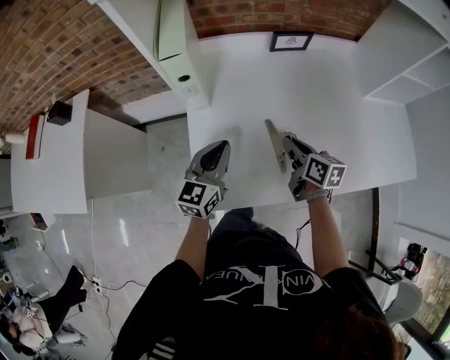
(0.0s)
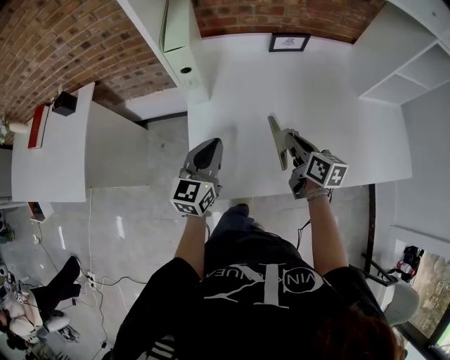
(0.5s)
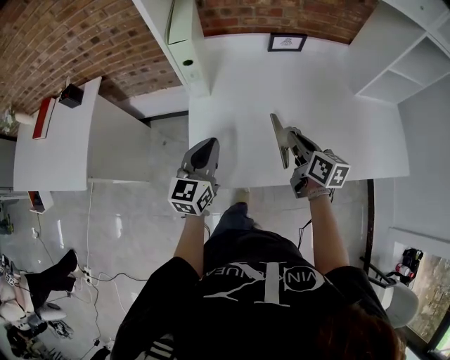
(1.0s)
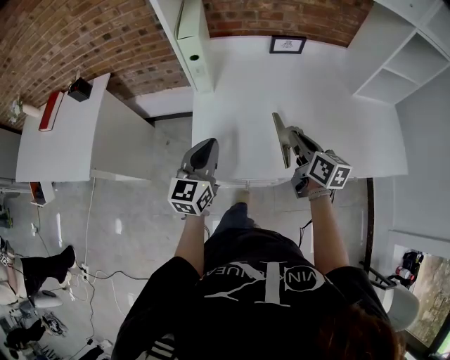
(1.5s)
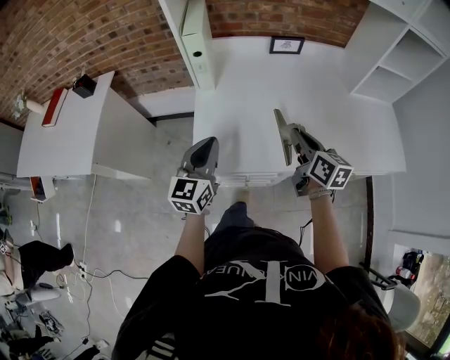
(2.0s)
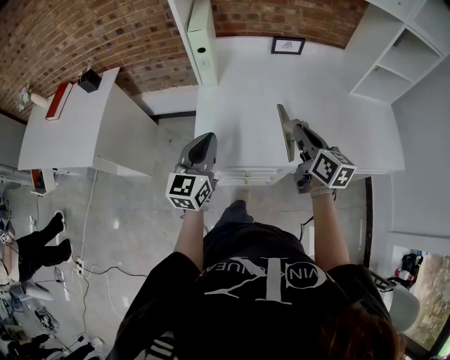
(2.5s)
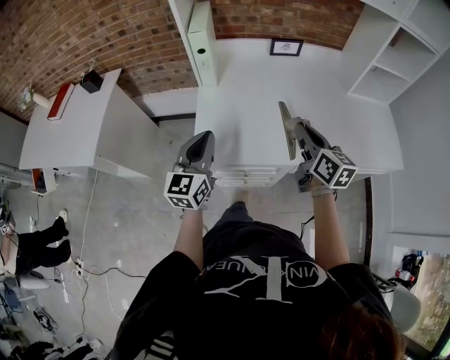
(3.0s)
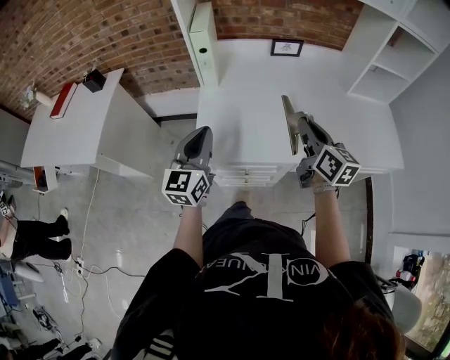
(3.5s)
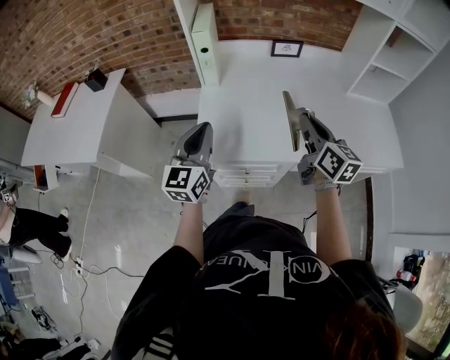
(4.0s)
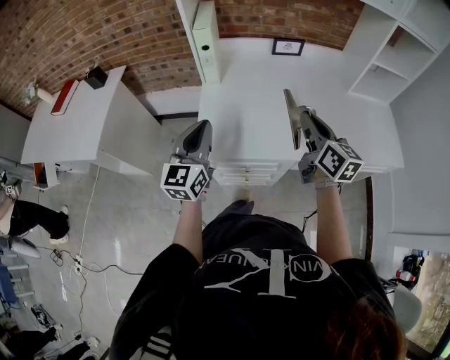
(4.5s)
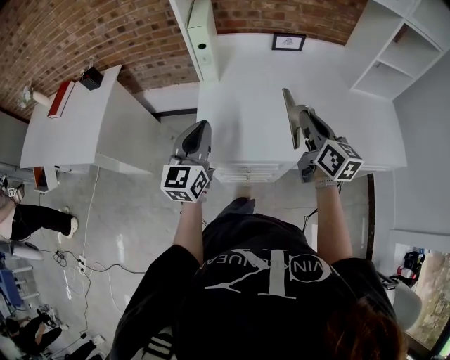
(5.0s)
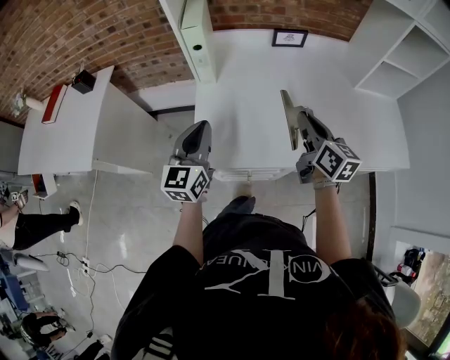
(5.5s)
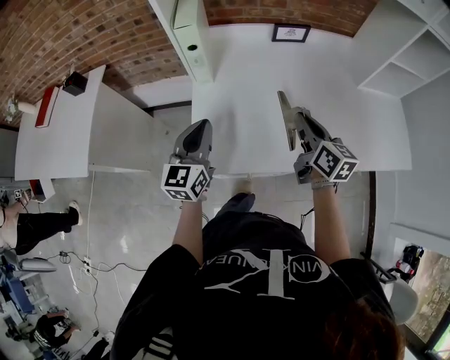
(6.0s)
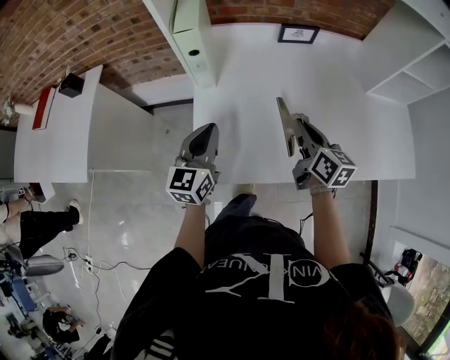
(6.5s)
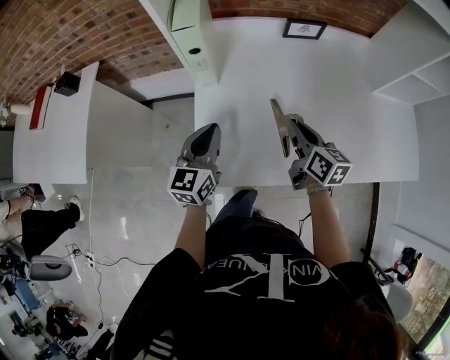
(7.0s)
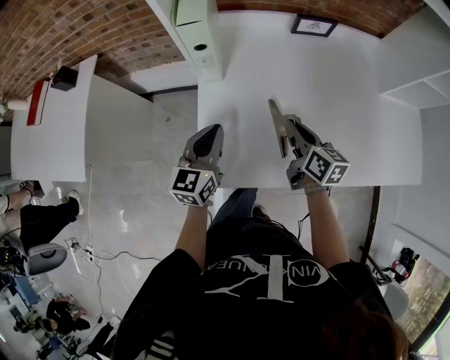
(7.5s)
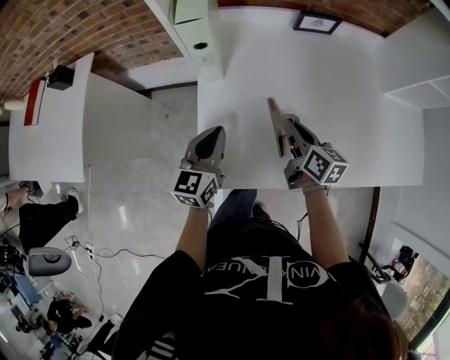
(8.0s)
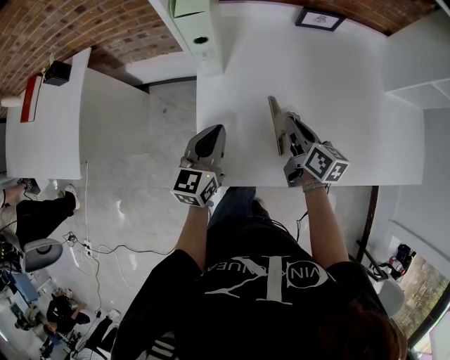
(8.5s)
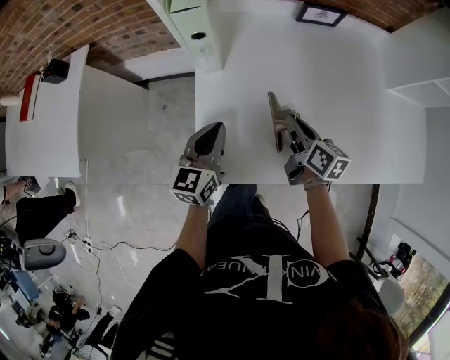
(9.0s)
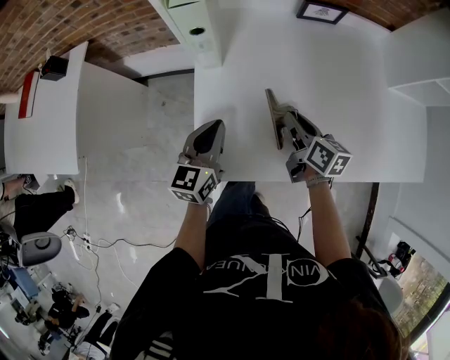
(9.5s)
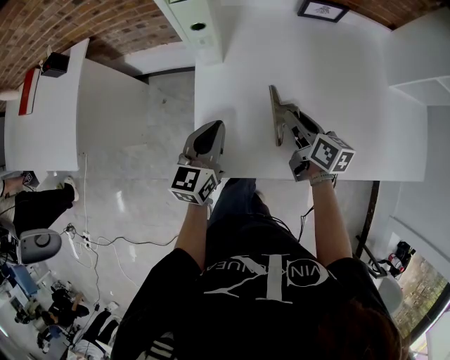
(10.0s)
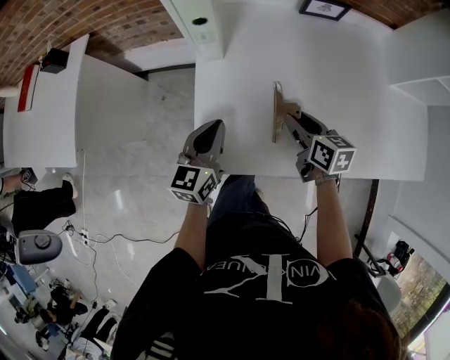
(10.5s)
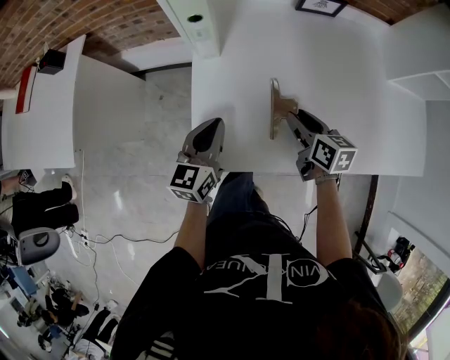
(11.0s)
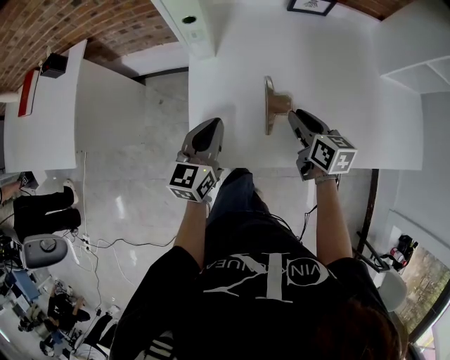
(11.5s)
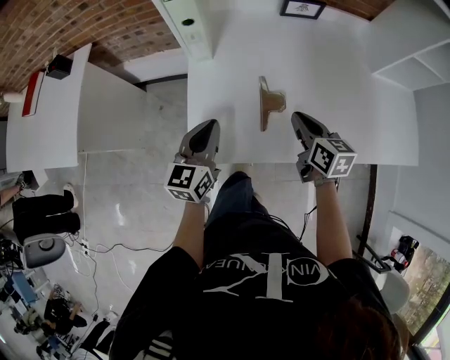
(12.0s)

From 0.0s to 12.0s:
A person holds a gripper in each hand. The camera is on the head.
From 0.0s to 2.0s: Both grippers move backward and upward, roughly 15 cm.
From 2.0s to 4.0s: Both grippers travel together upward, roughly 5 cm.
From 4.0s to 6.0s: Both grippers move forward and downward, some 10 cm.
From 6.0s to 8.0s: The left gripper travels downward by some 10 cm. Meanwhile the right gripper travels downward, to the left and forward by some 15 cm.
From 8.0s to 10.0s: The grippers move only a little.
From 10.0s to 12.0s: The right gripper moves backward, roughly 5 cm; the left gripper shifts by approximately 5 cm.

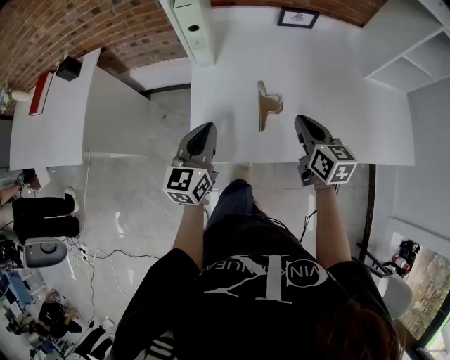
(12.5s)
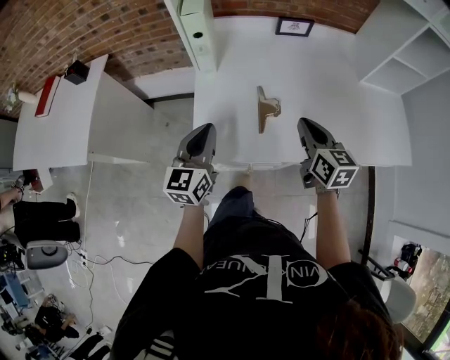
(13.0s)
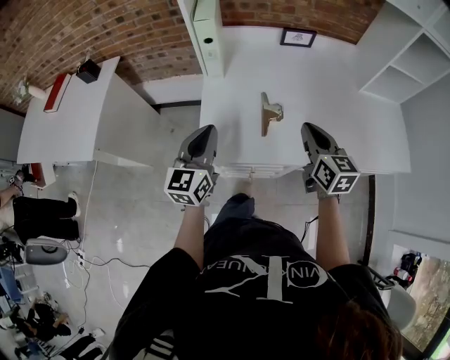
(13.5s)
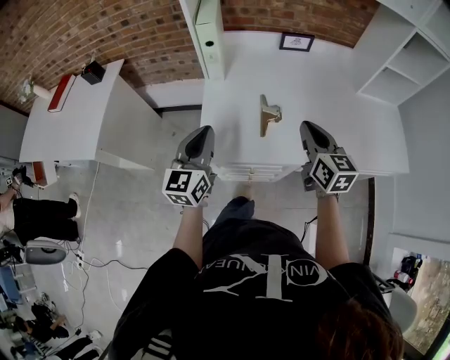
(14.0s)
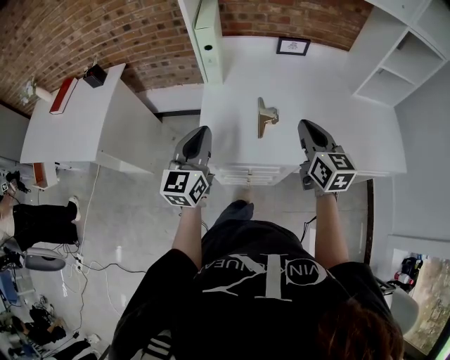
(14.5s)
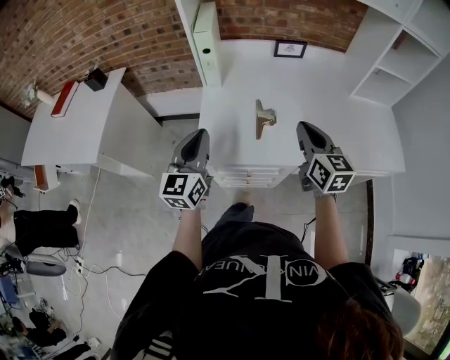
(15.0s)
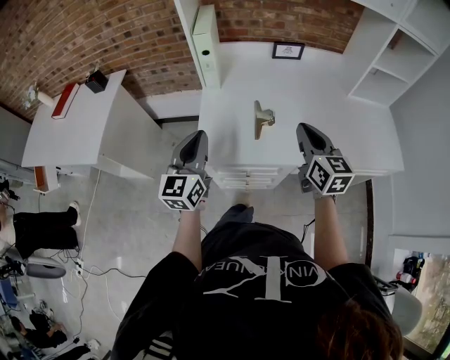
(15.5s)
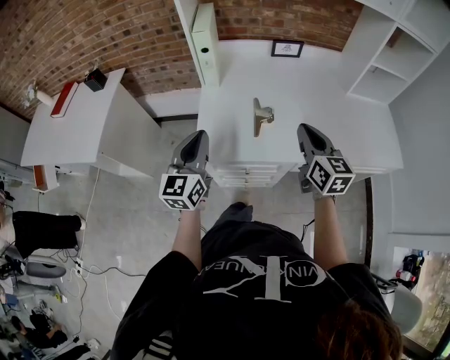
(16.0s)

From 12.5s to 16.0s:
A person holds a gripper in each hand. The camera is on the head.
From 12.5s to 14.5s: Both grippers move upward and backward, some 10 cm.
From 14.5s to 16.0s: The grippers make only small movements.

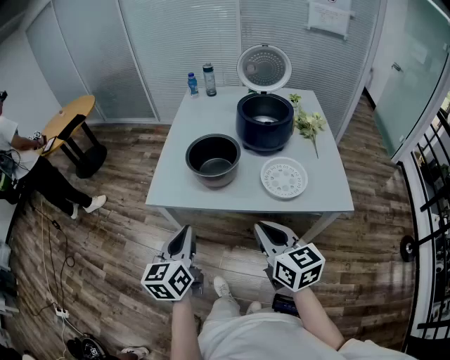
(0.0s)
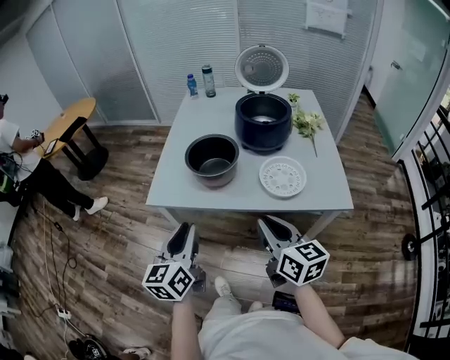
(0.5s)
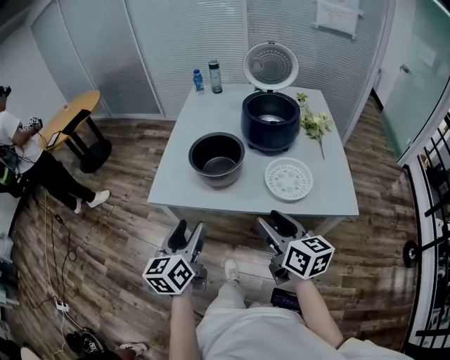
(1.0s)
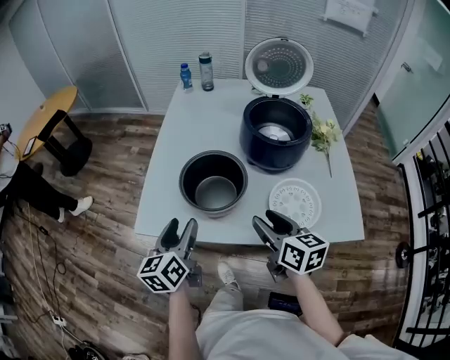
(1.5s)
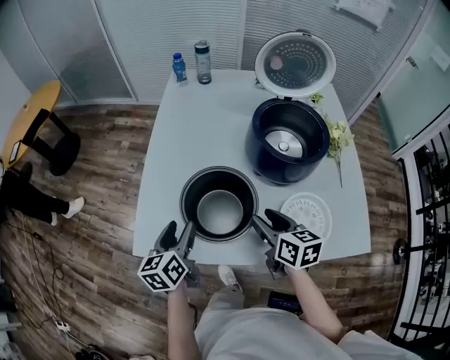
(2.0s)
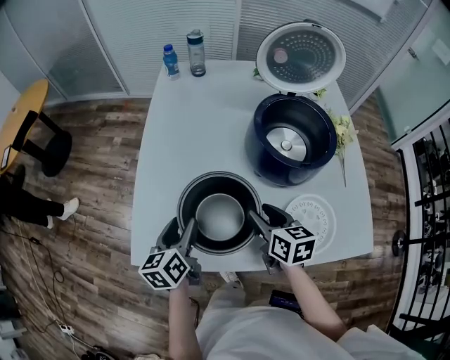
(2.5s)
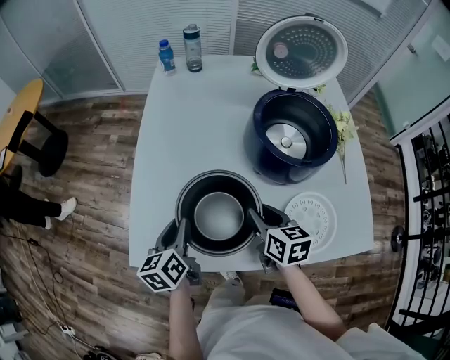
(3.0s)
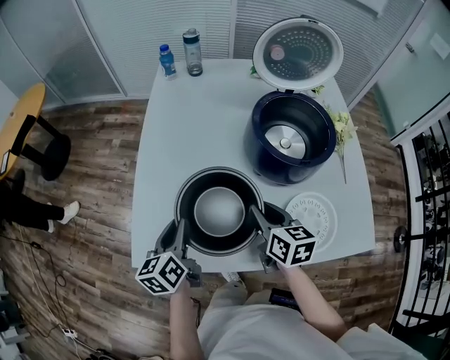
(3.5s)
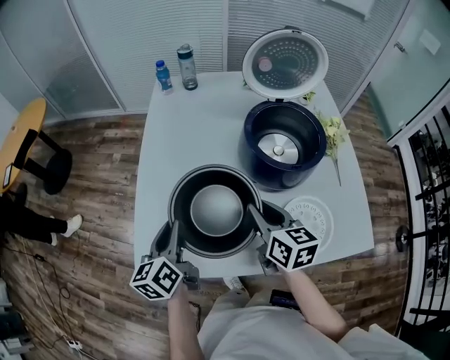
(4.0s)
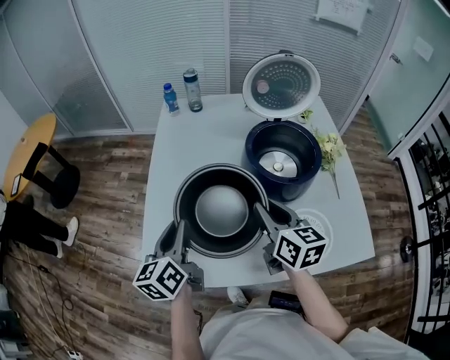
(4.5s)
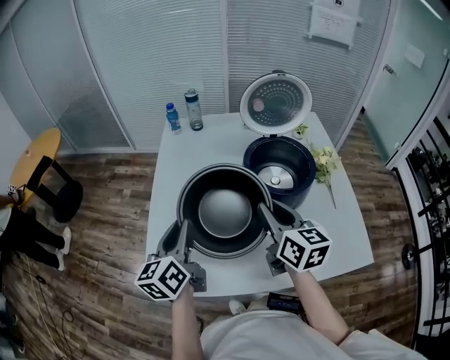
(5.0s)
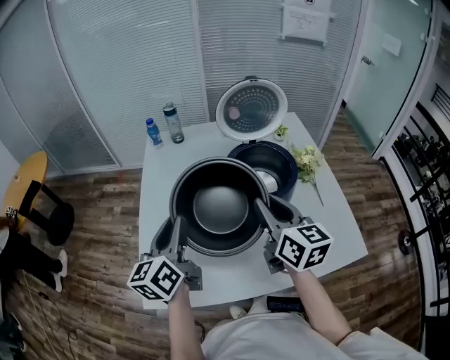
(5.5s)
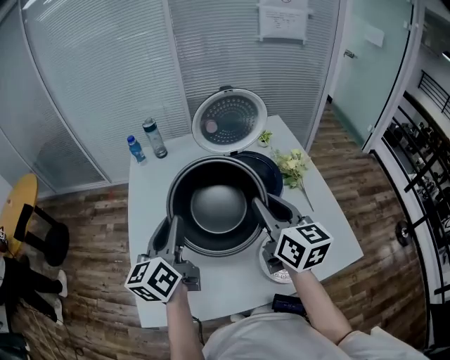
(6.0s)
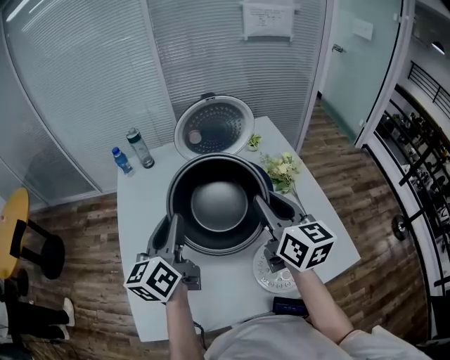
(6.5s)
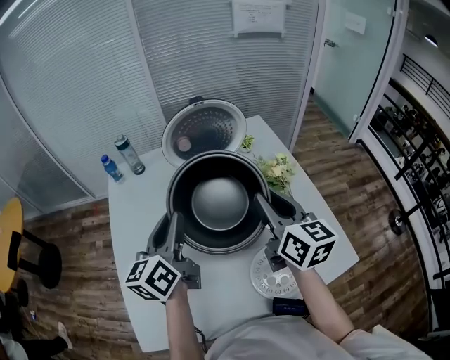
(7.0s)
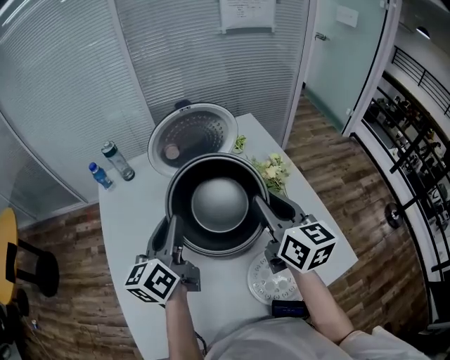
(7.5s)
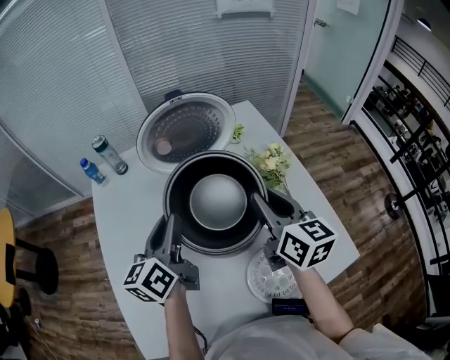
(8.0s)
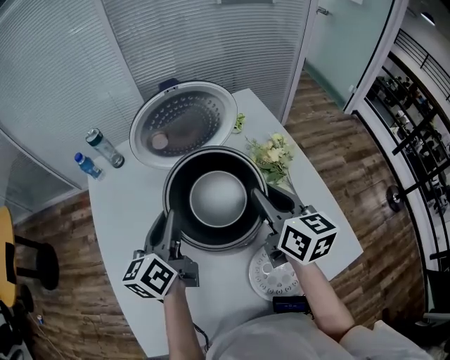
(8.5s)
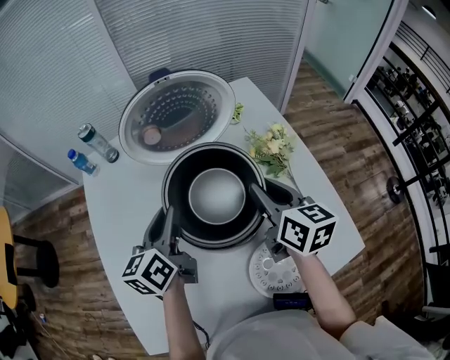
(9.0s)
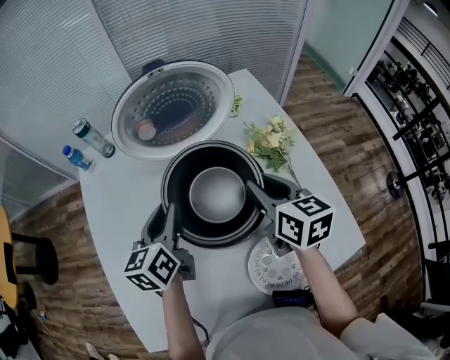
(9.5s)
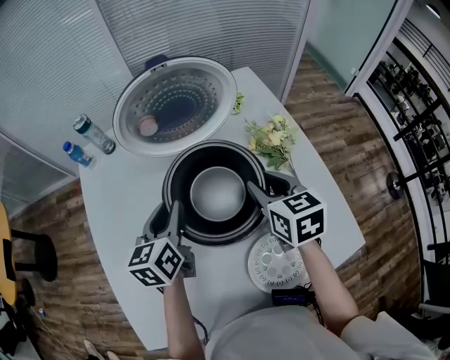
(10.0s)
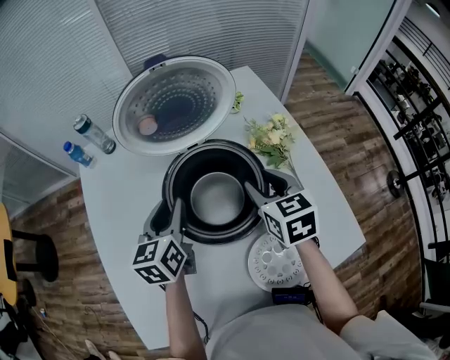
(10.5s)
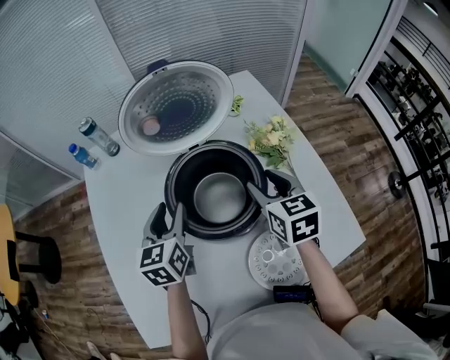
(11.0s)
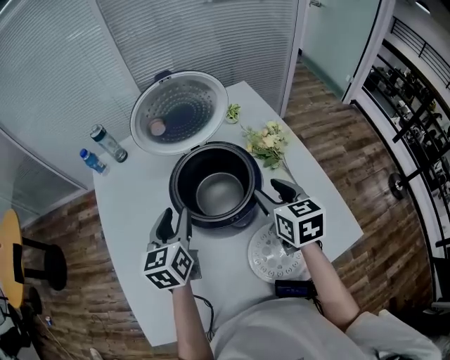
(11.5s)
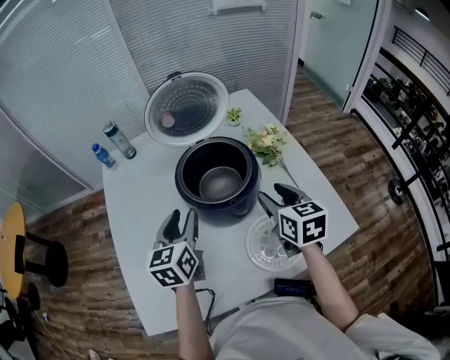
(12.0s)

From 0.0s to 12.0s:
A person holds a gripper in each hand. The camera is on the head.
From 0.0s to 2.0s: The two grippers go some 35 cm forward. The left gripper opens up. The right gripper swivels approximately 20 degrees, and opens.
From 2.0s to 4.0s: Both grippers move forward, about 5 cm. The right gripper closes up. The left gripper closes its fingers.
From 4.0s to 6.0s: The left gripper goes about 20 cm upward, to the right and forward, and swivels roughly 20 degrees; the right gripper goes some 20 cm upward and to the right, and swivels approximately 20 degrees.
From 6.0s to 8.0s: The two grippers go some 15 cm forward and to the right.
From 8.0s to 10.0s: Both grippers move downward, roughly 10 cm. The right gripper turns by some 30 degrees.
From 10.0s to 12.0s: The two grippers go about 15 cm backward.
